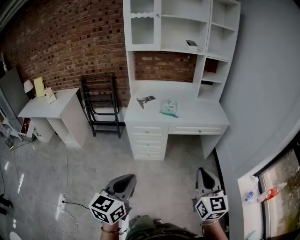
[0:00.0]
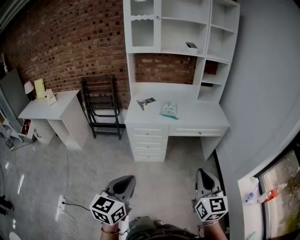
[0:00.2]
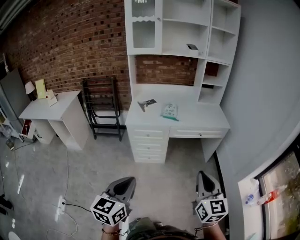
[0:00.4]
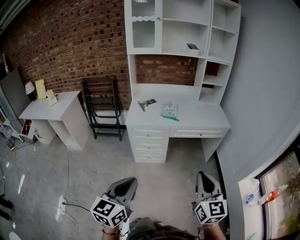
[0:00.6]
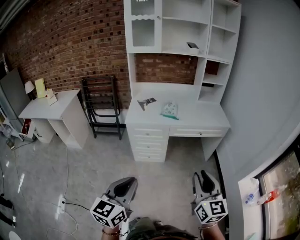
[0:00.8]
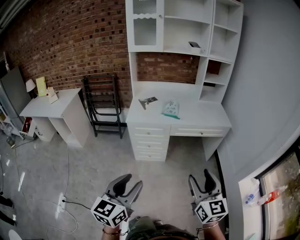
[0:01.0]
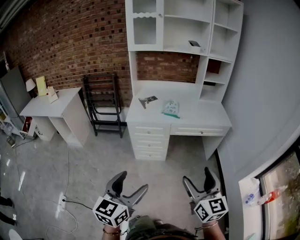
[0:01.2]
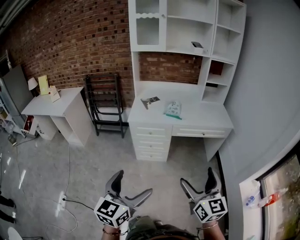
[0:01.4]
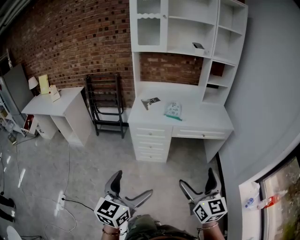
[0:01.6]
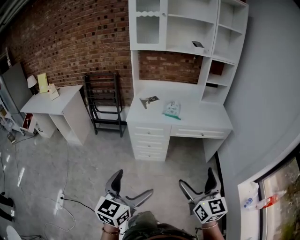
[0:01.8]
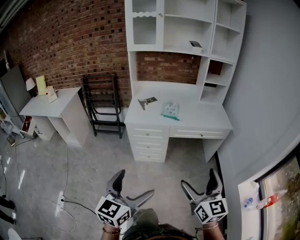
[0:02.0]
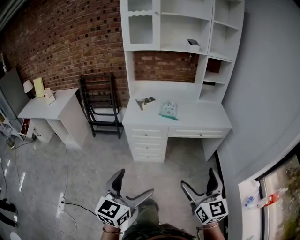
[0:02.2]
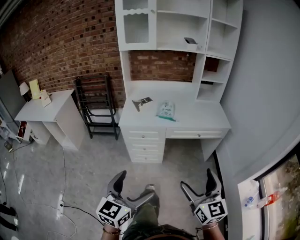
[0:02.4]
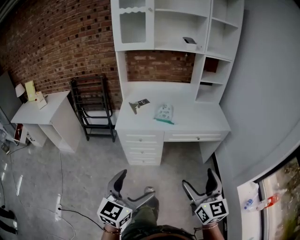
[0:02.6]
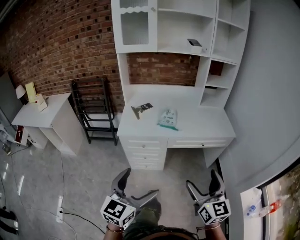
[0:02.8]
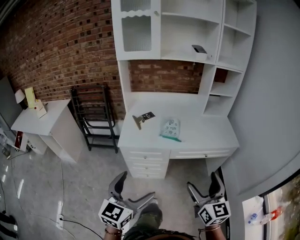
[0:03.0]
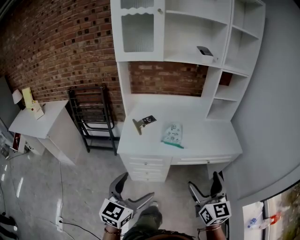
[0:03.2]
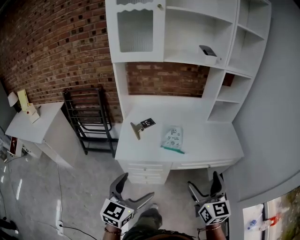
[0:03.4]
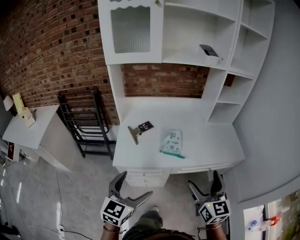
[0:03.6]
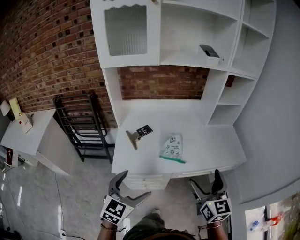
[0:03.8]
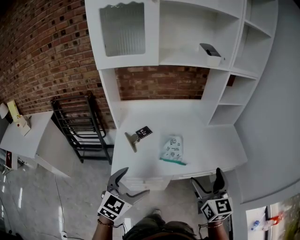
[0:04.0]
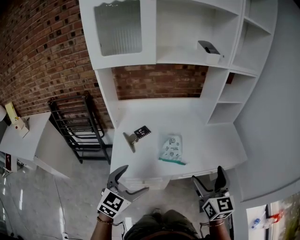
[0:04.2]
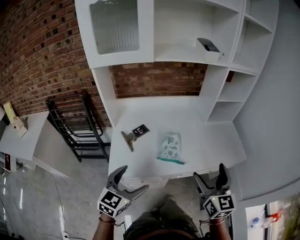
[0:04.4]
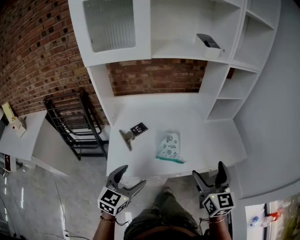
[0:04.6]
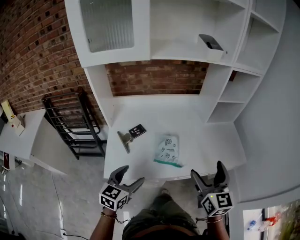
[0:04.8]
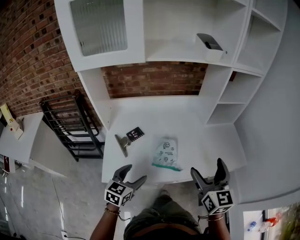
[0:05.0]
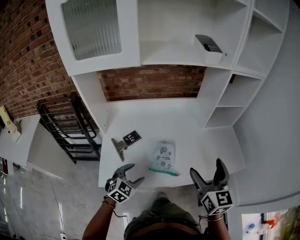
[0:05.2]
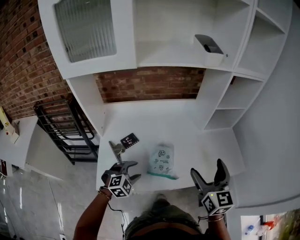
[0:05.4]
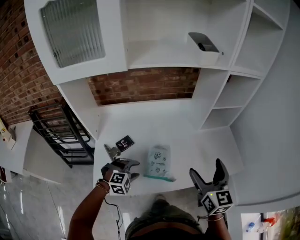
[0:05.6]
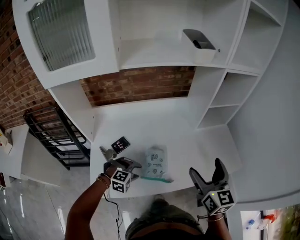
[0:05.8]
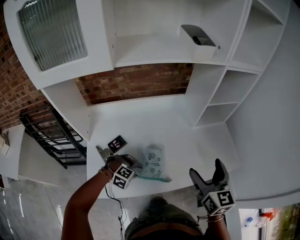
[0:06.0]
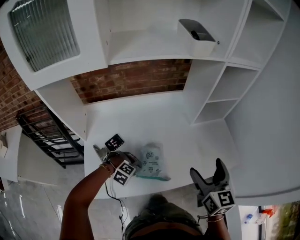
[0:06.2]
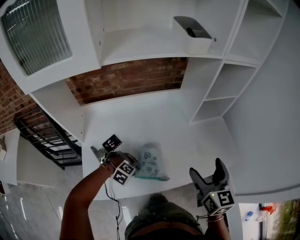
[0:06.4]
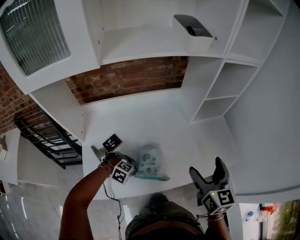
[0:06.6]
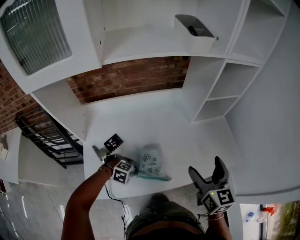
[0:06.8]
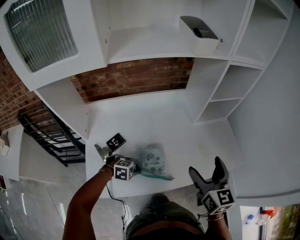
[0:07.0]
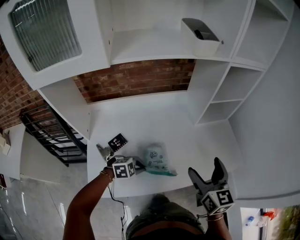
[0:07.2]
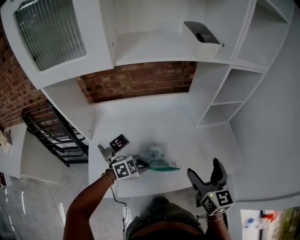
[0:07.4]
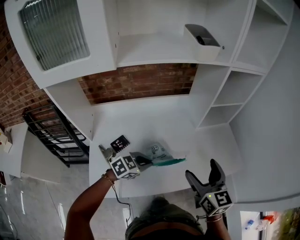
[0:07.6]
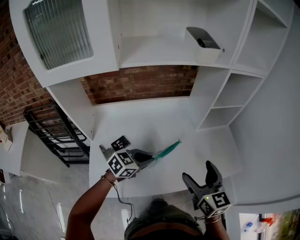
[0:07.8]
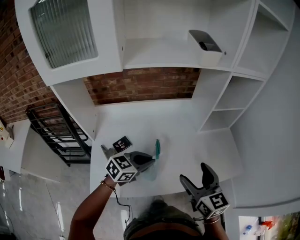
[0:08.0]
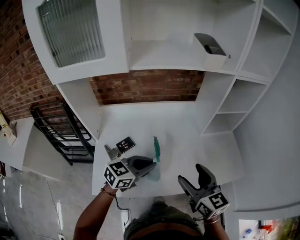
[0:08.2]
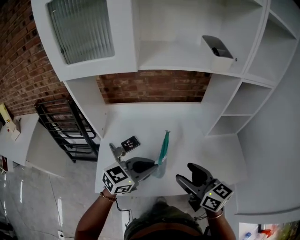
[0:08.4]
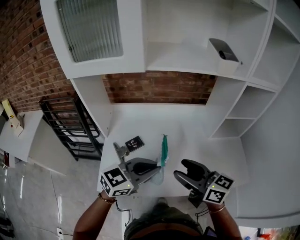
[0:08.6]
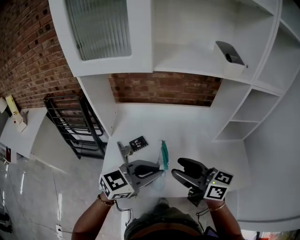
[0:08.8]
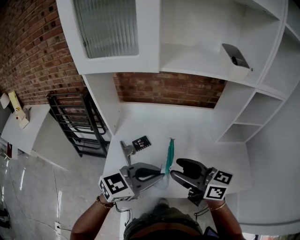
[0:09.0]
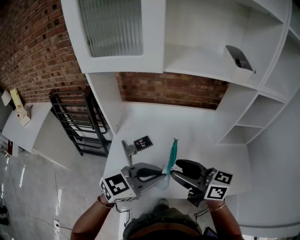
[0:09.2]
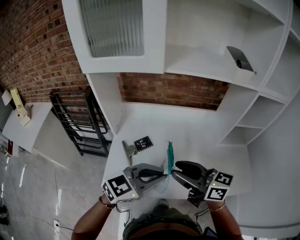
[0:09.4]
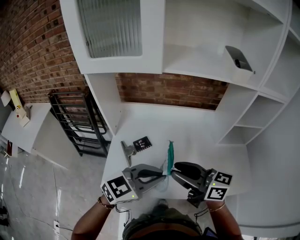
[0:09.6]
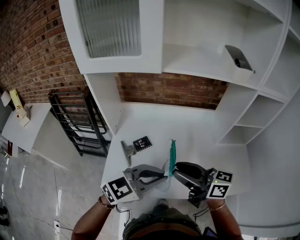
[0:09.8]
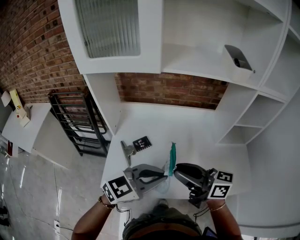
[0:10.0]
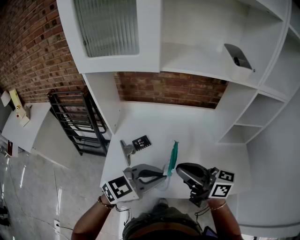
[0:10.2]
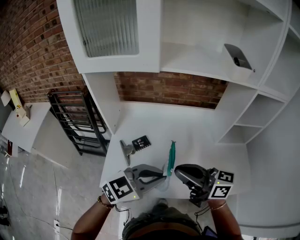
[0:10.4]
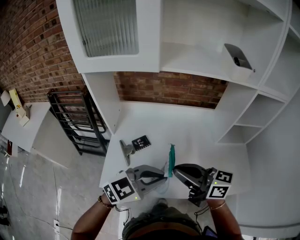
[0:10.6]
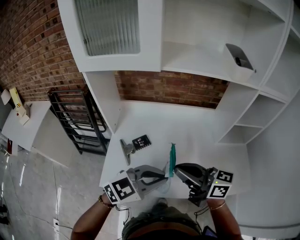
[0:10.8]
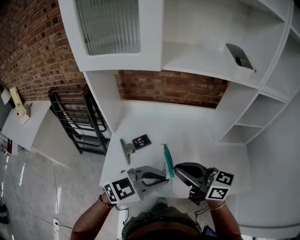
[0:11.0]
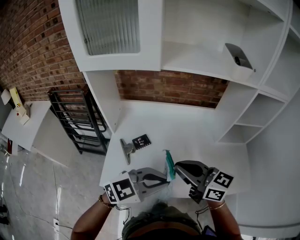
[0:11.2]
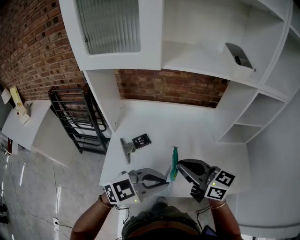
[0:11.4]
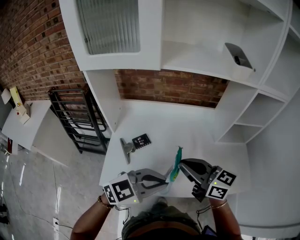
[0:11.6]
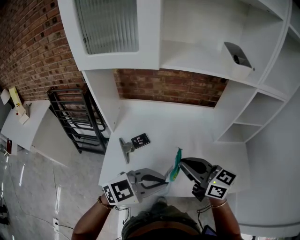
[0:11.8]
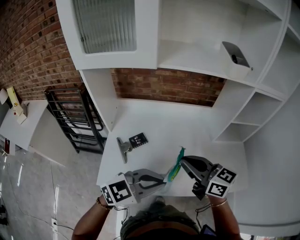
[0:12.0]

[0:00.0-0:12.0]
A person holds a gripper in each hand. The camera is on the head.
0:00.0 to 0:01.6: The right gripper opens up, while the left gripper opens.
0:01.6 to 0:03.0: The two grippers go approximately 25 cm forward.
0:03.0 to 0:04.4: Both grippers move forward, some 30 cm.
0:04.4 to 0:06.0: The right gripper travels forward by some 20 cm, while the left gripper shifts about 35 cm downward and forward, points its fingers roughly 50 degrees further downward, and closes.
0:06.0 to 0:07.6: The left gripper heads upward, covering approximately 10 cm, and rolls counterclockwise, seen from behind, by some 50 degrees.
0:07.6 to 0:09.0: The left gripper travels upward by some 20 cm, and rotates about 30 degrees, while the right gripper ends up about 15 cm from where it was, changes its angle by about 60 degrees, and closes.
0:09.0 to 0:10.4: The right gripper closes up.
0:10.4 to 0:12.0: The right gripper swivels some 20 degrees.

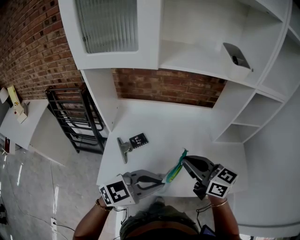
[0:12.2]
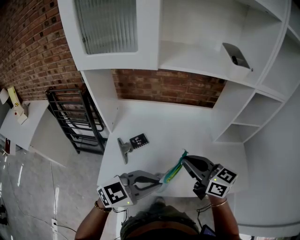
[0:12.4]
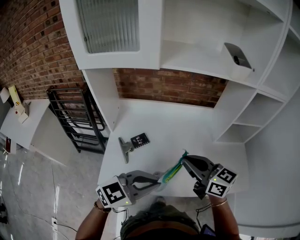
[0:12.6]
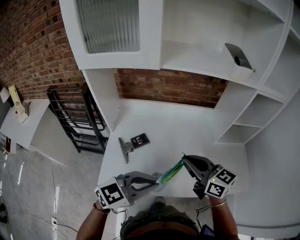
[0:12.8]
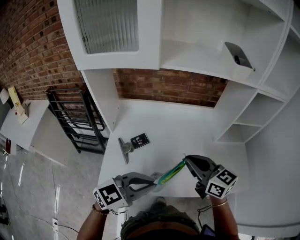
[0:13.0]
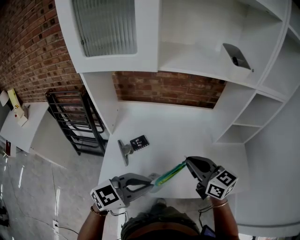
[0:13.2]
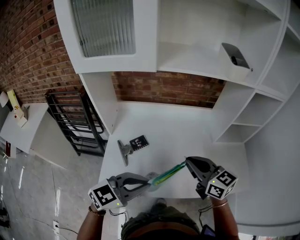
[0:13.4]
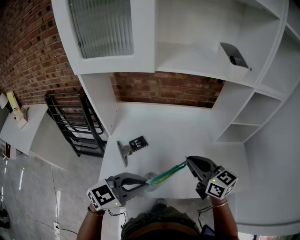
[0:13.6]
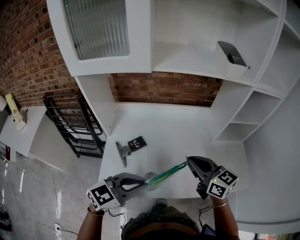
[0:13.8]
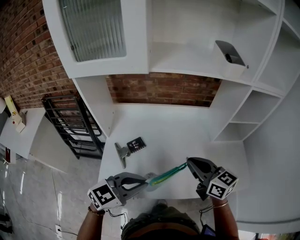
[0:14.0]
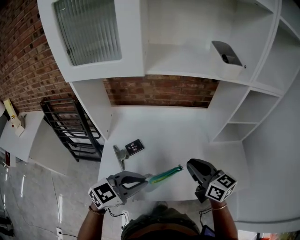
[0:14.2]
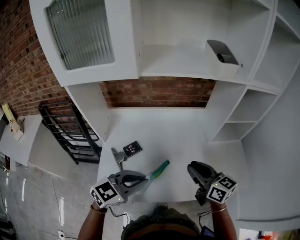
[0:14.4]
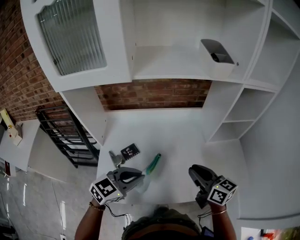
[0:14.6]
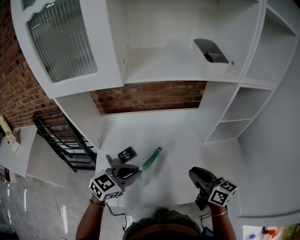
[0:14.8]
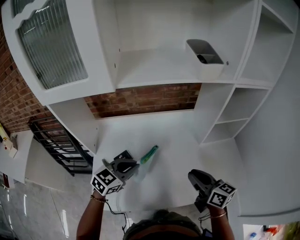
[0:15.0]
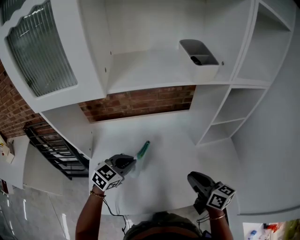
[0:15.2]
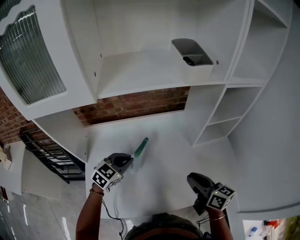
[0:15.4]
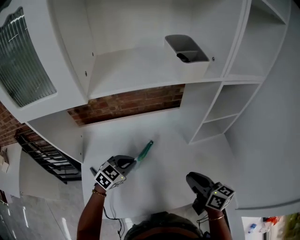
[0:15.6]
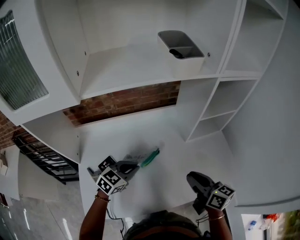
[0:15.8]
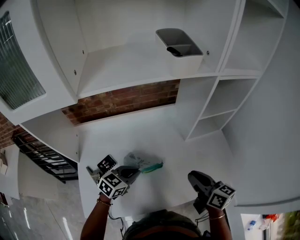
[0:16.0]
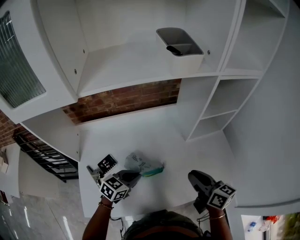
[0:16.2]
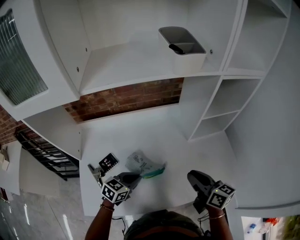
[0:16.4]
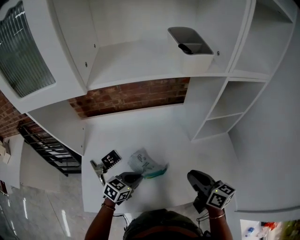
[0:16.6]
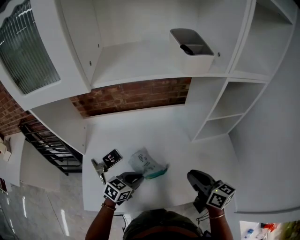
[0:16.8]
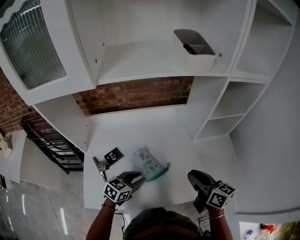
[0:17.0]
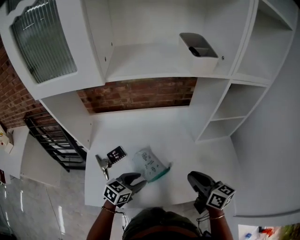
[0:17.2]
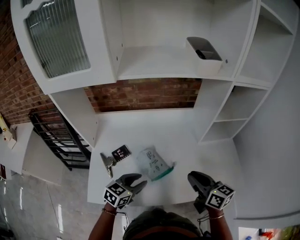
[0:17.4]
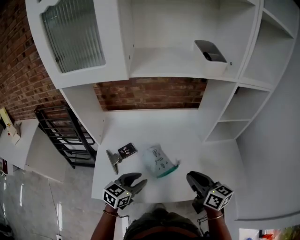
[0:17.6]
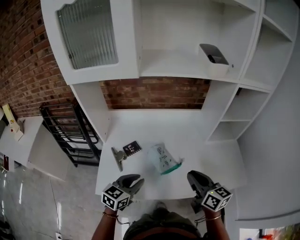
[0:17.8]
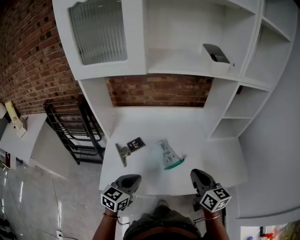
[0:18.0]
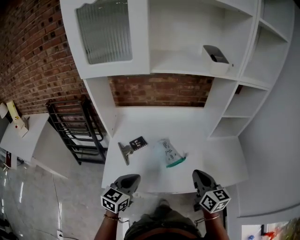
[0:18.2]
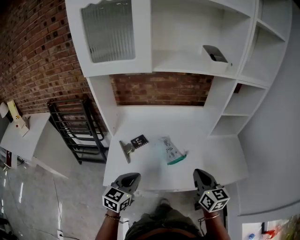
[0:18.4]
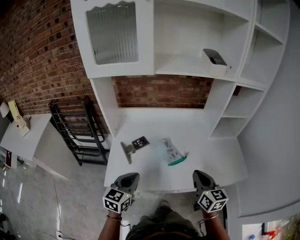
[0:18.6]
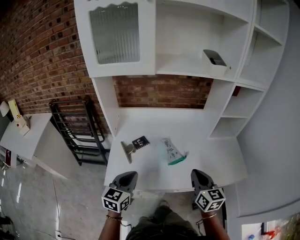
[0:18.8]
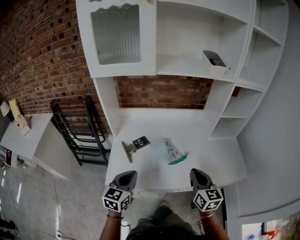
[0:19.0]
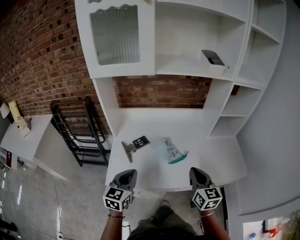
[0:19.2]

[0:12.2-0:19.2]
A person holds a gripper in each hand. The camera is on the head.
0:12.2 to 0:13.6: The left gripper goes roughly 5 cm to the left.
0:13.6 to 0:15.0: The left gripper heads forward, covering approximately 15 cm; the right gripper heads to the right, covering roughly 10 cm, and changes its angle by roughly 20 degrees.
0:15.0 to 0:16.4: The left gripper shifts about 15 cm downward and to the right. The right gripper shifts about 5 cm to the right.
0:16.4 to 0:17.8: The left gripper moves backward, upward and to the left, approximately 15 cm, and changes its angle by about 20 degrees, while the right gripper moves to the left and backward, some 10 cm.
0:17.8 to 0:19.2: The left gripper travels to the left, backward and upward by roughly 10 cm, and swivels approximately 20 degrees. The right gripper goes approximately 5 cm backward, and swivels approximately 20 degrees.

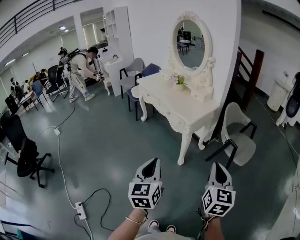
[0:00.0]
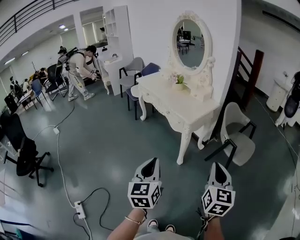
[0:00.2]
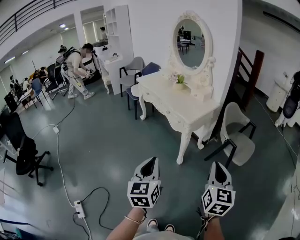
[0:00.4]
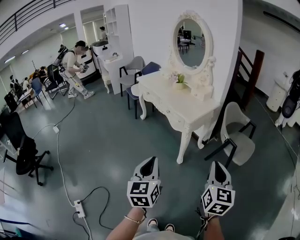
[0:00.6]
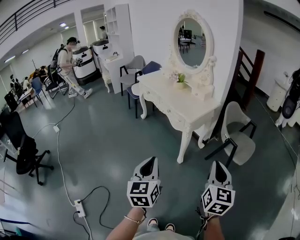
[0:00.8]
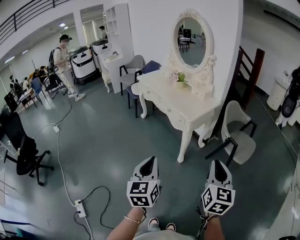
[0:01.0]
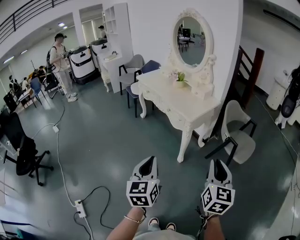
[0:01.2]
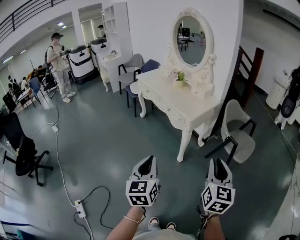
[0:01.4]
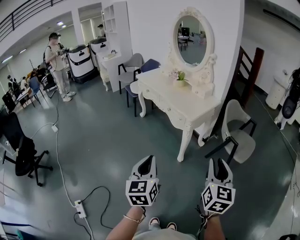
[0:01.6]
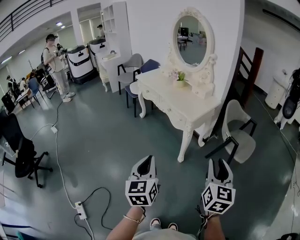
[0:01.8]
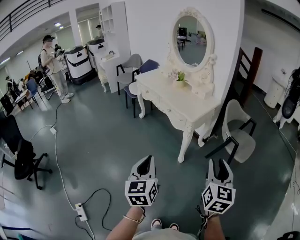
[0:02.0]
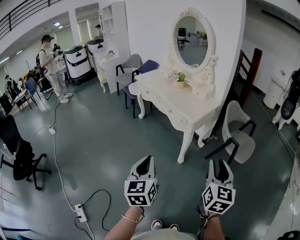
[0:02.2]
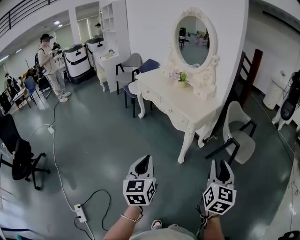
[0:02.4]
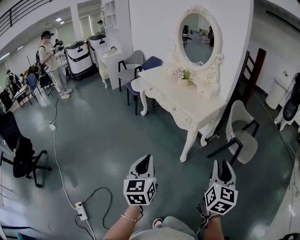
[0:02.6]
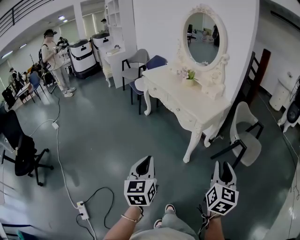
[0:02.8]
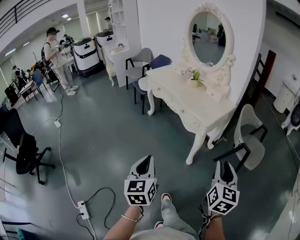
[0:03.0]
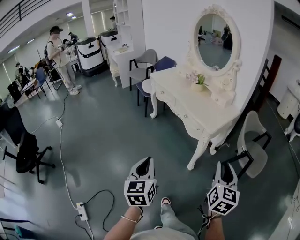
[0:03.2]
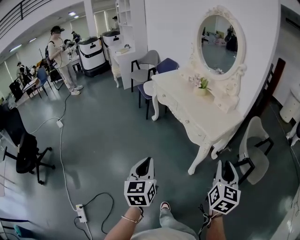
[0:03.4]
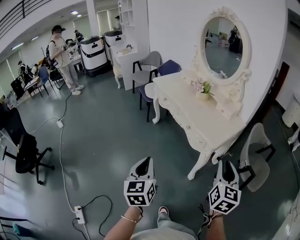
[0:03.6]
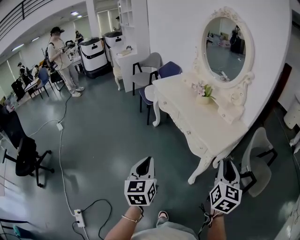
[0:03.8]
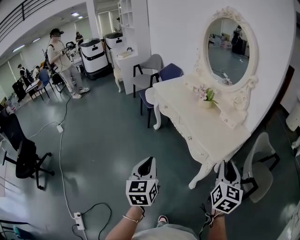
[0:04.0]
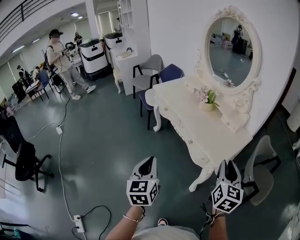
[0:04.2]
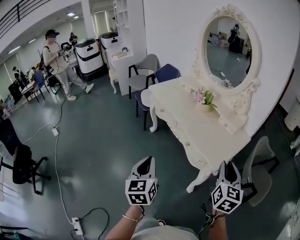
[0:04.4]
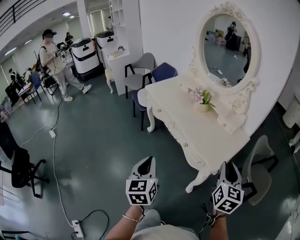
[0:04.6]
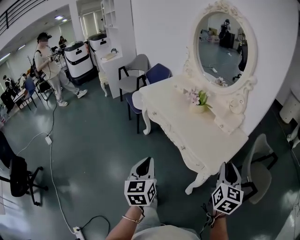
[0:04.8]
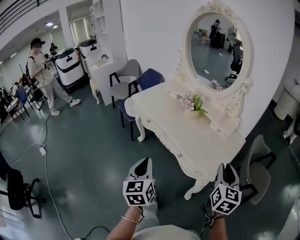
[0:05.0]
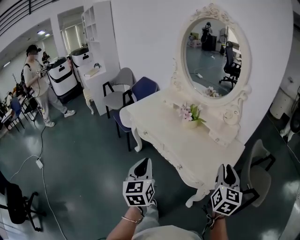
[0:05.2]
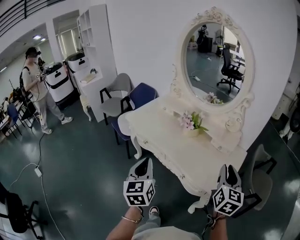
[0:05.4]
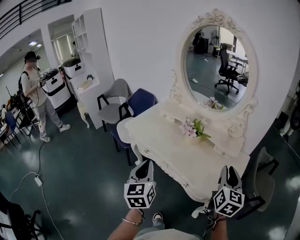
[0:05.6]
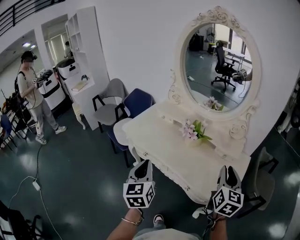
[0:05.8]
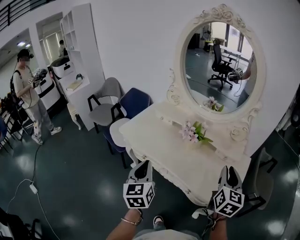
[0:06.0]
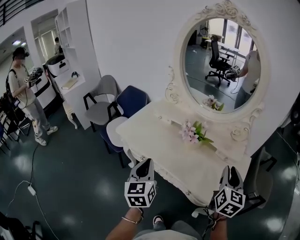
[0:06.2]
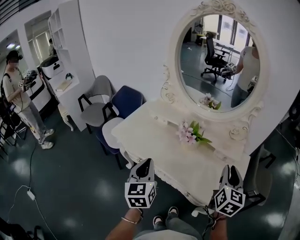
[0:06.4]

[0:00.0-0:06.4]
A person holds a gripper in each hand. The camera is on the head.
0:00.0 to 0:01.6: The right gripper opens its fingers.
0:01.6 to 0:03.2: The left gripper is displaced to the left and forward by approximately 15 cm, while the right gripper is displaced forward and to the left by about 15 cm.
0:03.2 to 0:04.8: The two grippers go about 30 cm forward.
0:04.8 to 0:06.4: The right gripper moves forward and to the left, about 25 cm, and turns by about 20 degrees. Meanwhile the left gripper shifts some 35 cm forward, and turns by about 20 degrees.
